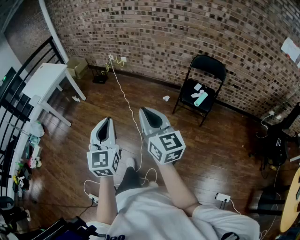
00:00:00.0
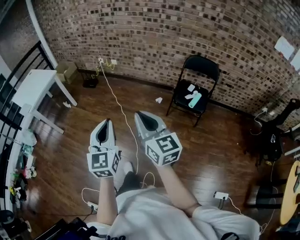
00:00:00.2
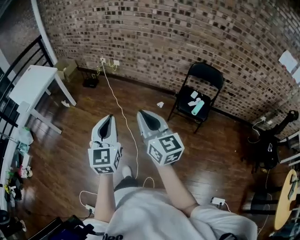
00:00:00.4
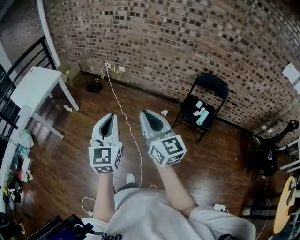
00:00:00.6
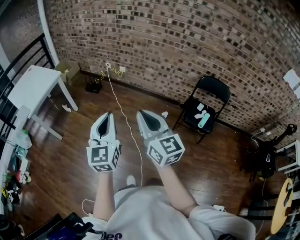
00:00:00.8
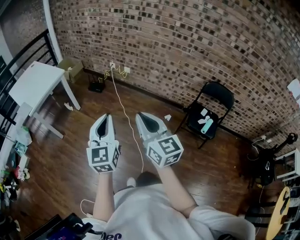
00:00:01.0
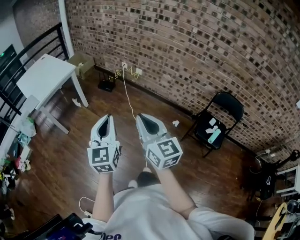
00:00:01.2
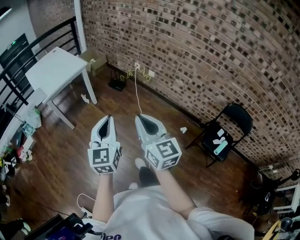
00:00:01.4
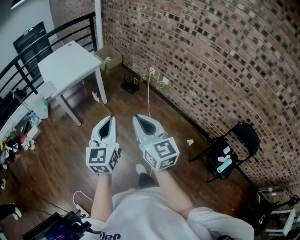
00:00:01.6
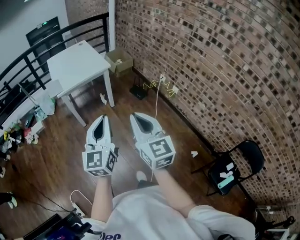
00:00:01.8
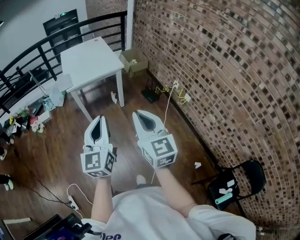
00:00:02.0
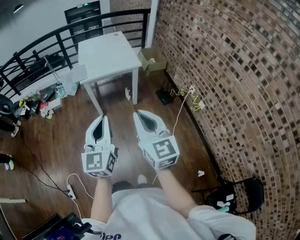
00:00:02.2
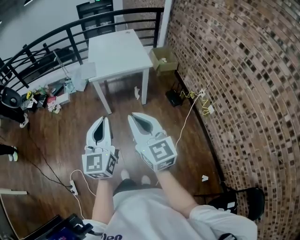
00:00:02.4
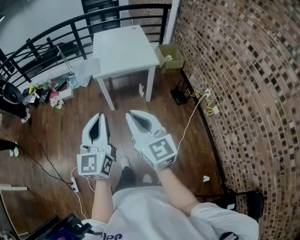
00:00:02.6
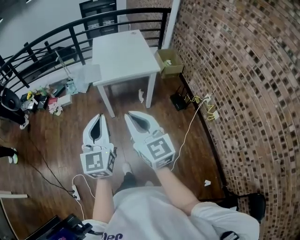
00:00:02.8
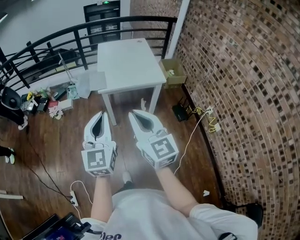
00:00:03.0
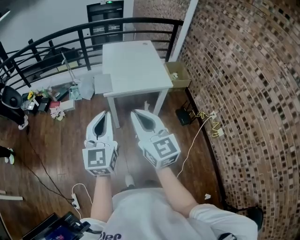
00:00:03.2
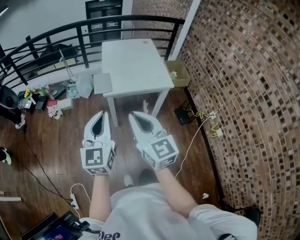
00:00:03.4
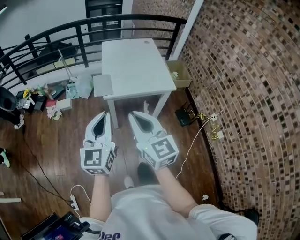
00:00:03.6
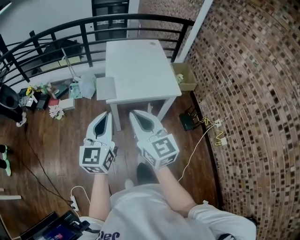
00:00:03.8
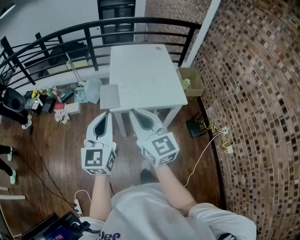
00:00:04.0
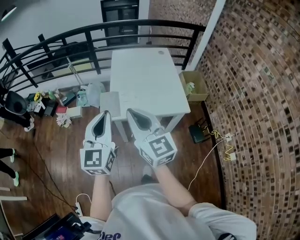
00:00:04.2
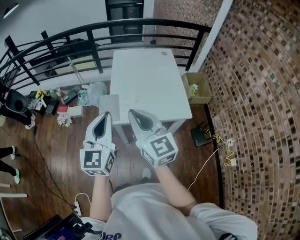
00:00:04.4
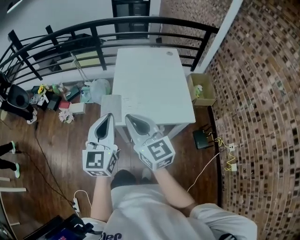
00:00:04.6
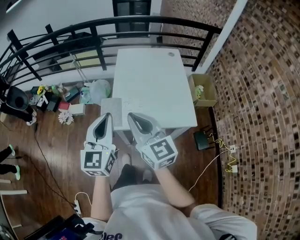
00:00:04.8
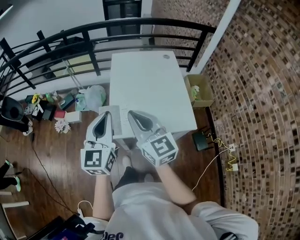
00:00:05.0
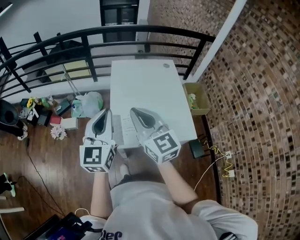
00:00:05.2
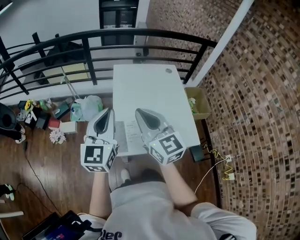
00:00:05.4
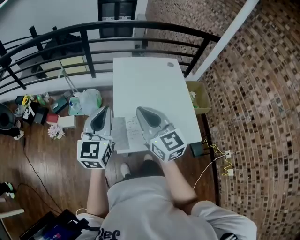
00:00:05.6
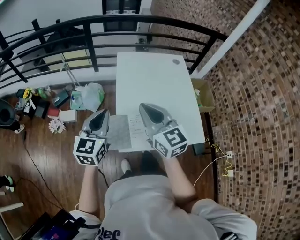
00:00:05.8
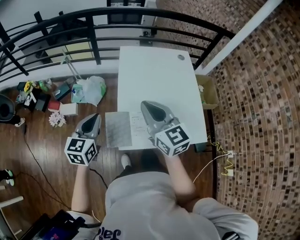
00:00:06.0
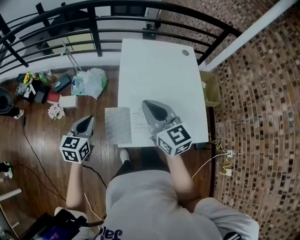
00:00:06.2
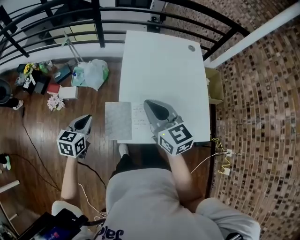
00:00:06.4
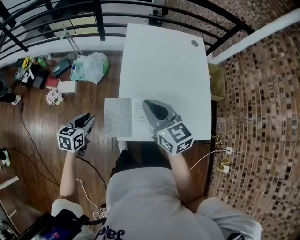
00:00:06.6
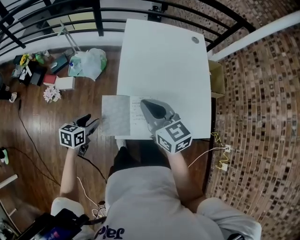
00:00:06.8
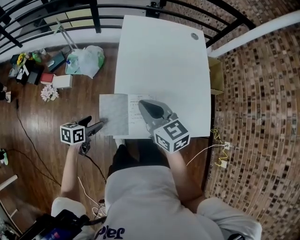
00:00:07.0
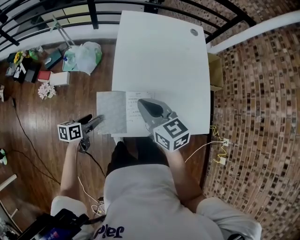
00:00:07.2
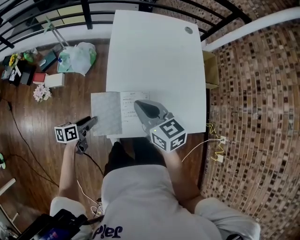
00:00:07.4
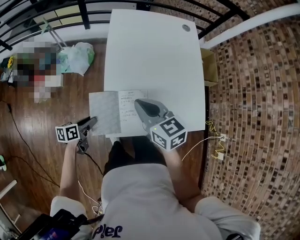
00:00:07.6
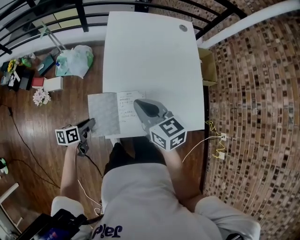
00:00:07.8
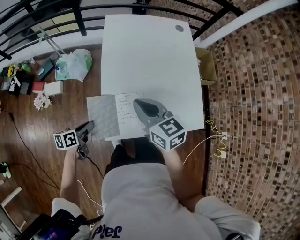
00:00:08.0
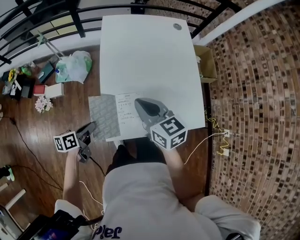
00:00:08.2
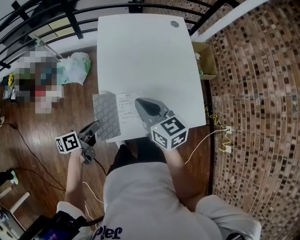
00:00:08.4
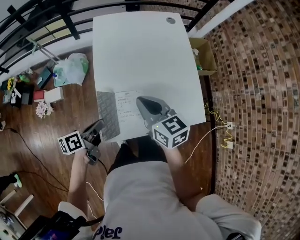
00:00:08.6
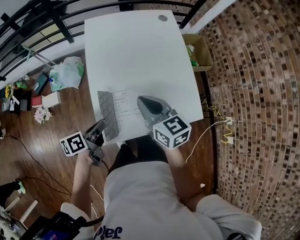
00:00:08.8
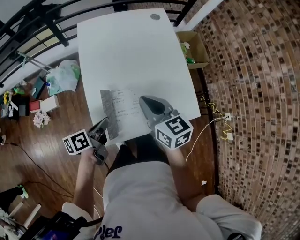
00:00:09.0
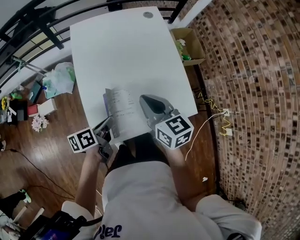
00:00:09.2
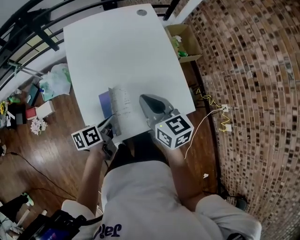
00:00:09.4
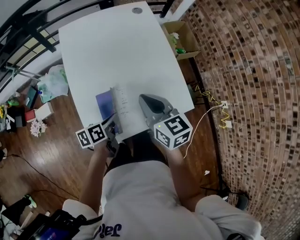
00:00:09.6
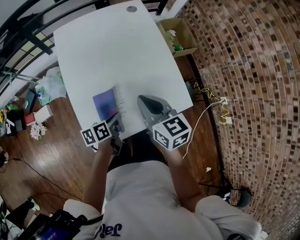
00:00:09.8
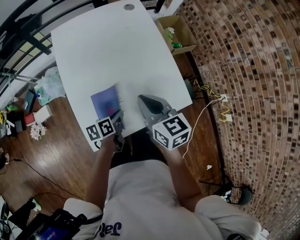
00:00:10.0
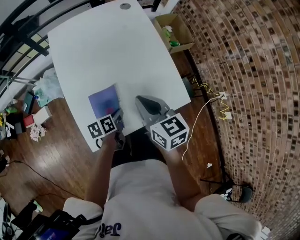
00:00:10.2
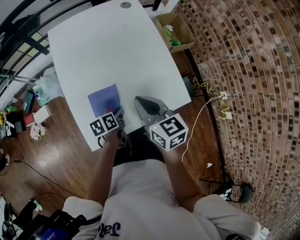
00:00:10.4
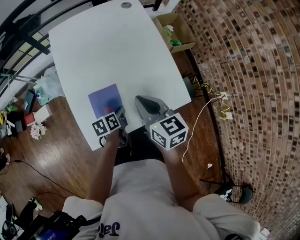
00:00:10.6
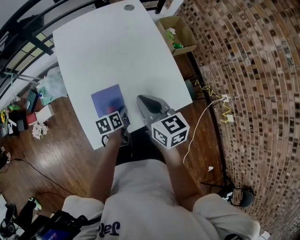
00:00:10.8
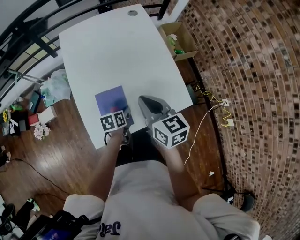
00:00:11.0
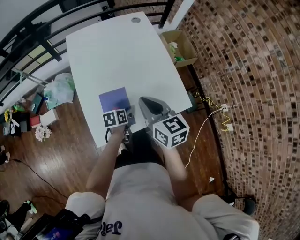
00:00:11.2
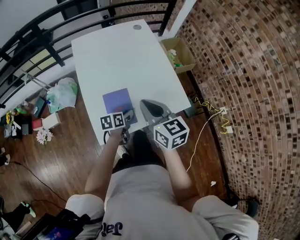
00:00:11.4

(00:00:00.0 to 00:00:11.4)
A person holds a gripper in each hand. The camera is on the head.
00:00:00.0 - 00:00:01.4: The two grippers travel together, forward and to the left, about 40 cm.
00:00:01.4 - 00:00:02.8: The left gripper ends up roughly 30 cm from where it was, and rotates approximately 40 degrees; the right gripper moves some 35 cm, and turns by approximately 50 degrees.
00:00:02.8 - 00:00:04.2: Both grippers travel together forward, about 35 cm.
00:00:04.2 - 00:00:05.6: Both grippers travel together forward, some 30 cm.
00:00:05.6 - 00:00:07.2: The left gripper heads downward, covering approximately 40 cm, points its fingers approximately 30 degrees further downward, and opens up; the right gripper heads downward, covering about 20 cm, and swivels some 30 degrees.
00:00:07.2 - 00:00:08.6: The left gripper heads upward and to the right, covering approximately 15 cm, and closes up; the right gripper travels to the right by about 5 cm.
00:00:08.6 - 00:00:10.0: The right gripper moves to the right, about 15 cm; the left gripper heads to the right and downward, covering some 20 cm.
00:00:10.0 - 00:00:11.4: The right gripper is displaced backward and upward by some 10 cm.

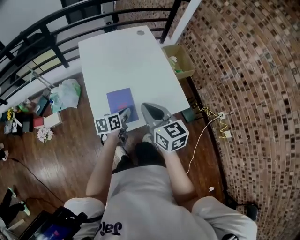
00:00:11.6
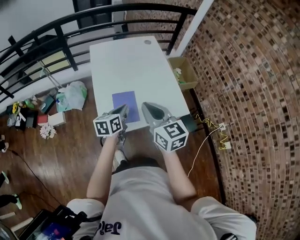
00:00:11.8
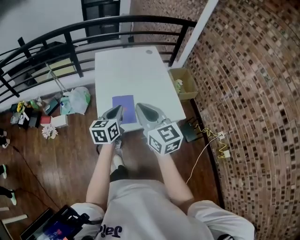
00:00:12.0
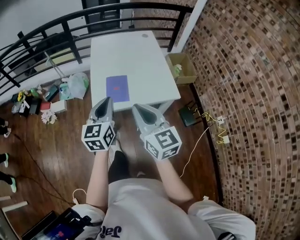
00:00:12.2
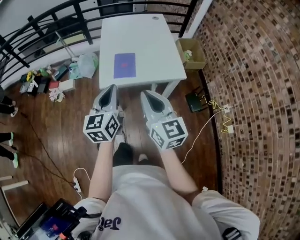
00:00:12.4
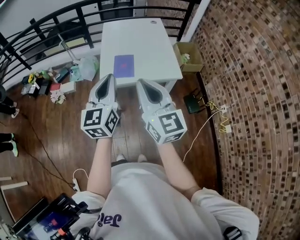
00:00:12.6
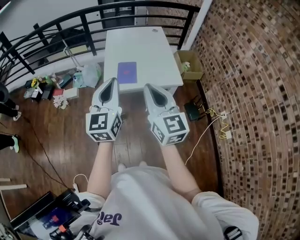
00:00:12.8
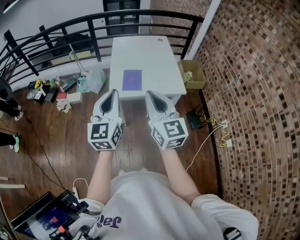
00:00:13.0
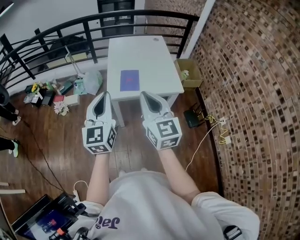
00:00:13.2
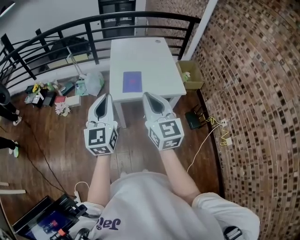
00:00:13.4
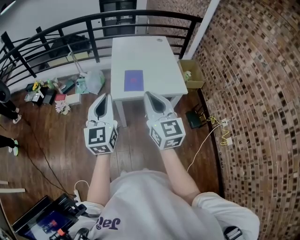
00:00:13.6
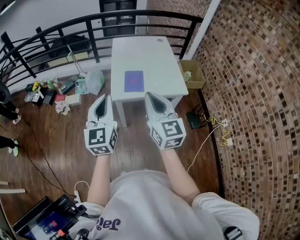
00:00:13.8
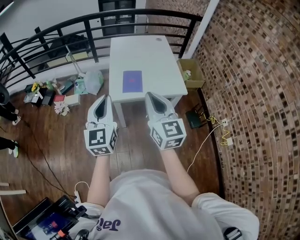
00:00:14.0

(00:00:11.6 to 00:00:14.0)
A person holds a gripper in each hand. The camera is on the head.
00:00:11.6 - 00:00:12.8: The left gripper moves upward and backward, roughly 50 cm, and tilts its fingers some 30 degrees upward. Meanwhile the right gripper shifts about 35 cm backward and upward, and turns by approximately 20 degrees.
00:00:12.8 - 00:00:14.0: The left gripper goes some 10 cm to the left. Meanwhile the right gripper changes place by roughly 5 cm.

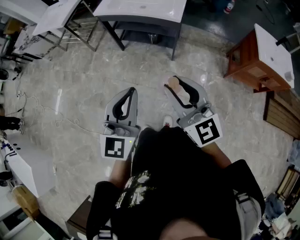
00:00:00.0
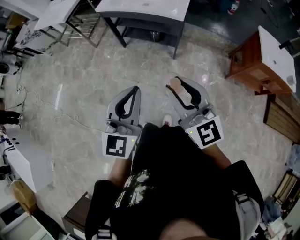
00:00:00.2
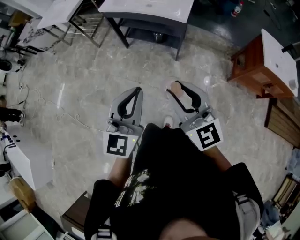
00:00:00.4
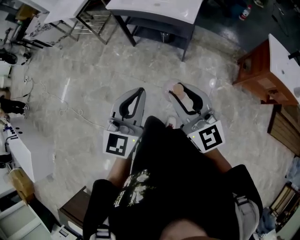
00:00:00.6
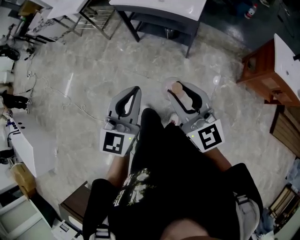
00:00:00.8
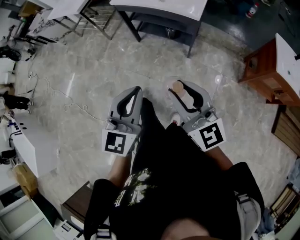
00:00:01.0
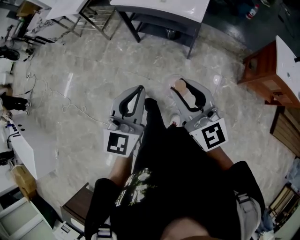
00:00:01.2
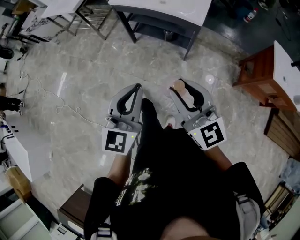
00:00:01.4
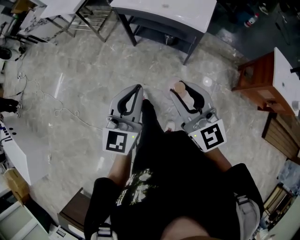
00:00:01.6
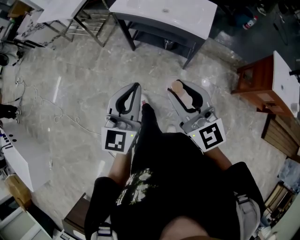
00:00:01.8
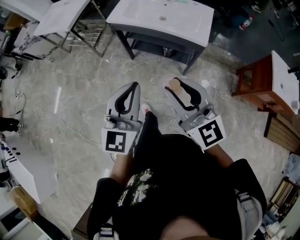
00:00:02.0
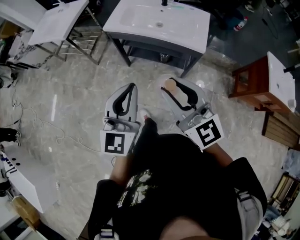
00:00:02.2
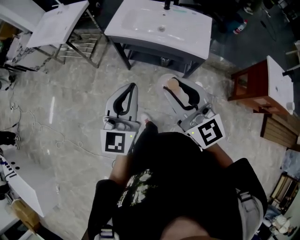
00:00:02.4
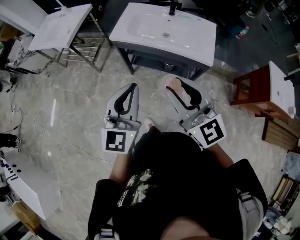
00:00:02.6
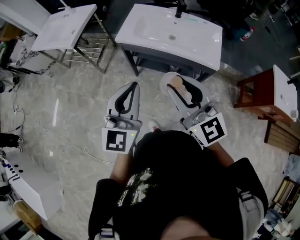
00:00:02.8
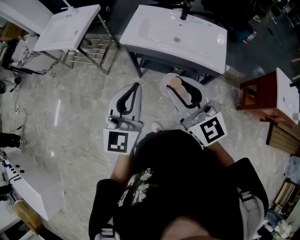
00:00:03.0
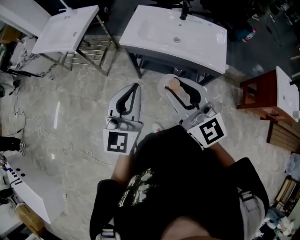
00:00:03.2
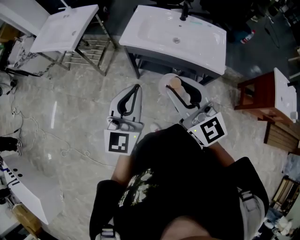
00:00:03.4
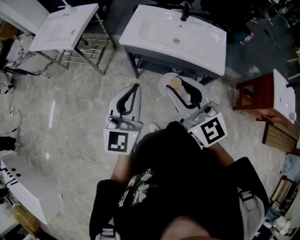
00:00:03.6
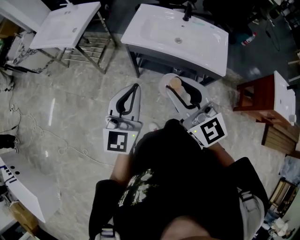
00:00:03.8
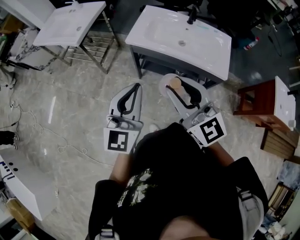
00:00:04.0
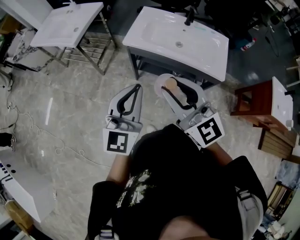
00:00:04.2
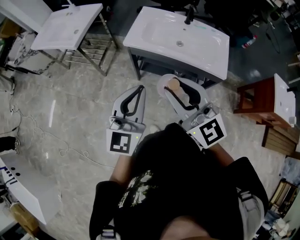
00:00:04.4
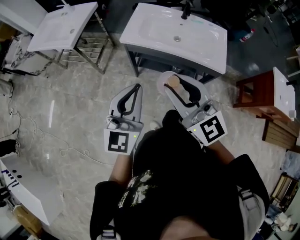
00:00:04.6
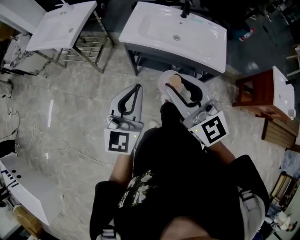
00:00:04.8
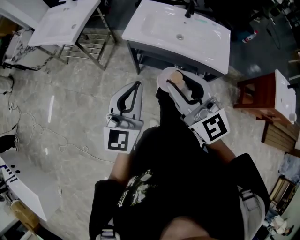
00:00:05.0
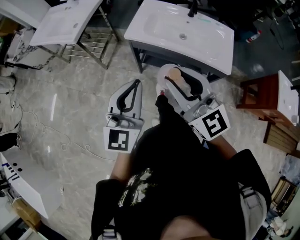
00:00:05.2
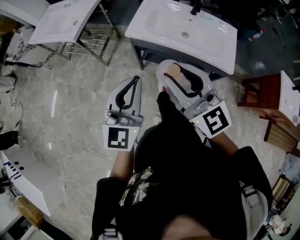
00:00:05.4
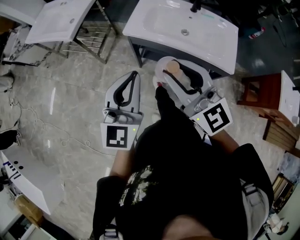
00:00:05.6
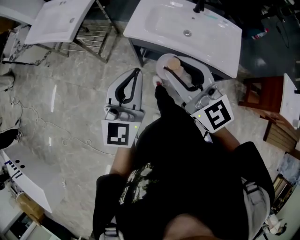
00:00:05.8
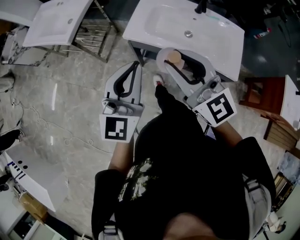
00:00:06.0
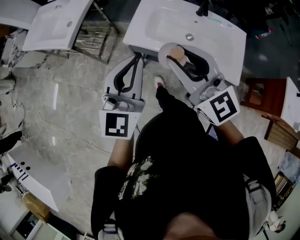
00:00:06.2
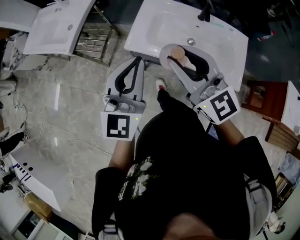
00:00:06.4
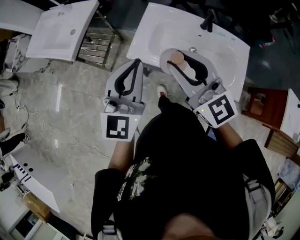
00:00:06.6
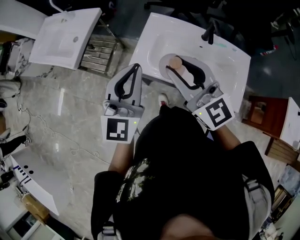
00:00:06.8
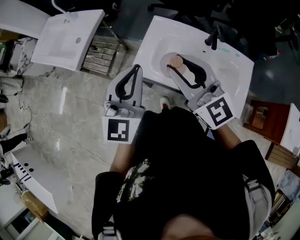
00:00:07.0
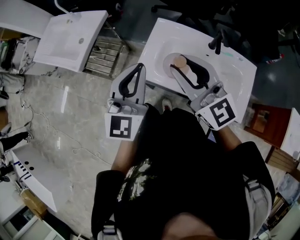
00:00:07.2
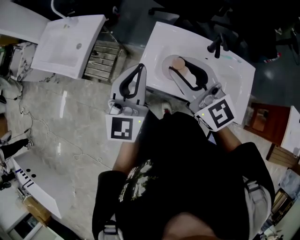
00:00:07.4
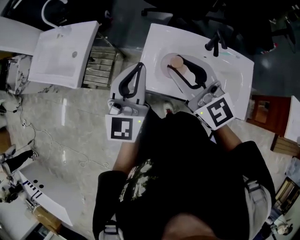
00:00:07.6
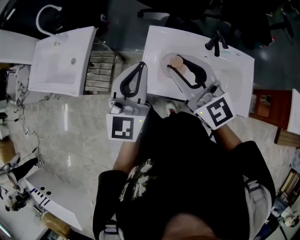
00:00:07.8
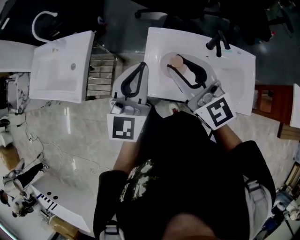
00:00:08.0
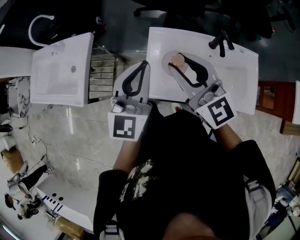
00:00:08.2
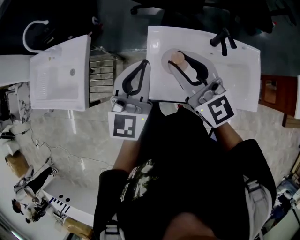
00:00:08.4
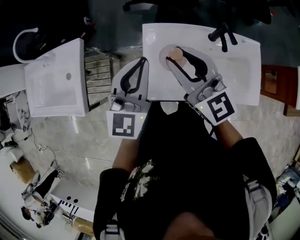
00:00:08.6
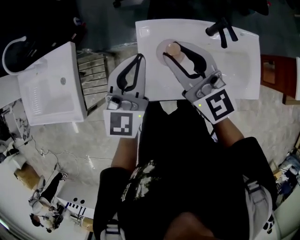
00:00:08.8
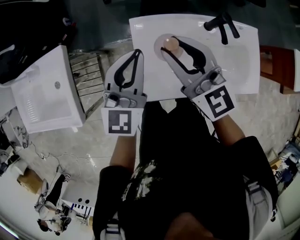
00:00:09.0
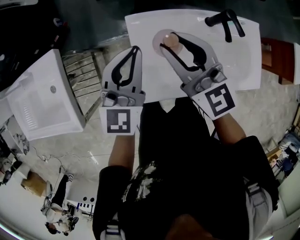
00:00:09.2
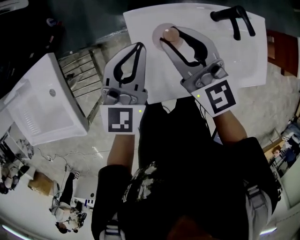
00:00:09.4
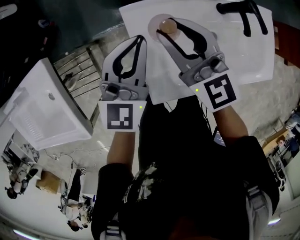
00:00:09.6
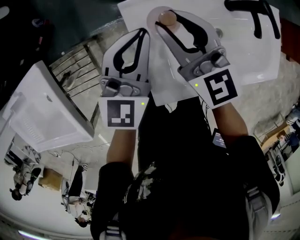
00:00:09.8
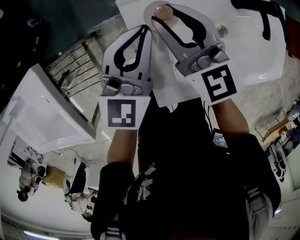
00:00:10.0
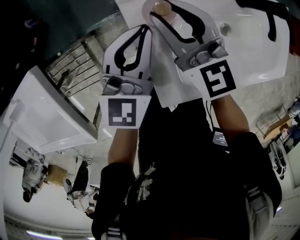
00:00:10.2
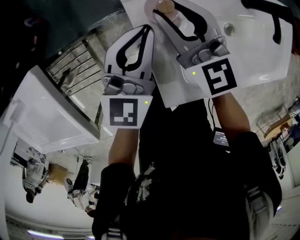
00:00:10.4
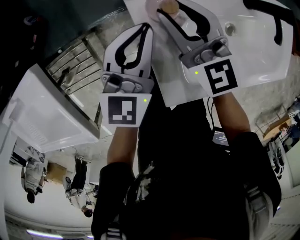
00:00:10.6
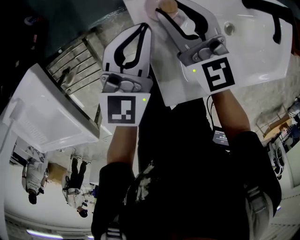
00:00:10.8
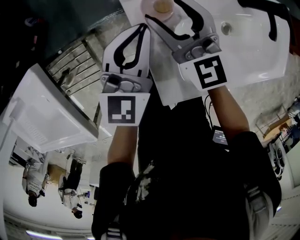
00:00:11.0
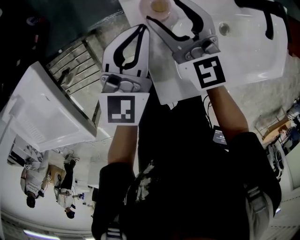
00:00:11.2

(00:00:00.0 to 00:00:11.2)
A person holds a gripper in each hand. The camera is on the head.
00:00:00.0 - 00:00:01.6: Both grippers move forward and to the left, about 15 cm.
00:00:01.6 - 00:00:03.2: The two grippers go some 35 cm forward and to the left.
00:00:03.2 - 00:00:04.8: The grippers move only a little.
00:00:04.8 - 00:00:06.4: Both grippers travel together forward, some 25 cm.
00:00:06.4 - 00:00:08.0: Both grippers move forward, roughly 25 cm.
00:00:08.0 - 00:00:09.6: The two grippers go about 30 cm forward and downward. The right gripper swivels approximately 30 degrees, while the left gripper changes its angle by approximately 30 degrees.
00:00:09.6 - 00:00:11.2: The two grippers go approximately 10 cm downward. The right gripper opens.
